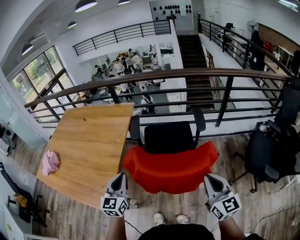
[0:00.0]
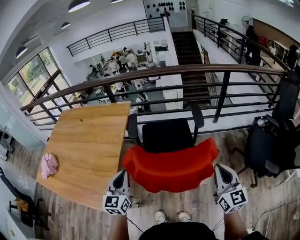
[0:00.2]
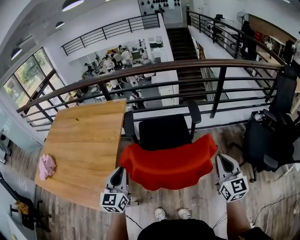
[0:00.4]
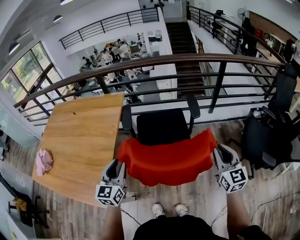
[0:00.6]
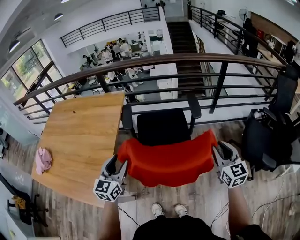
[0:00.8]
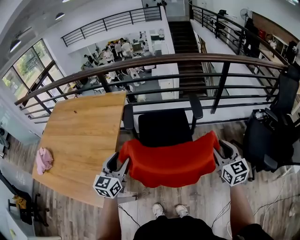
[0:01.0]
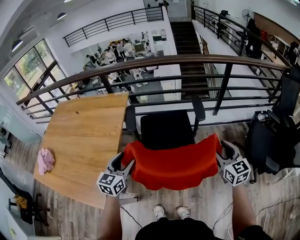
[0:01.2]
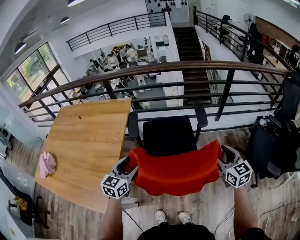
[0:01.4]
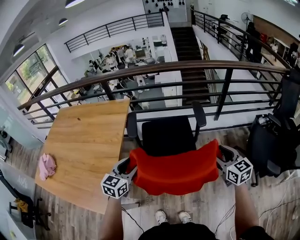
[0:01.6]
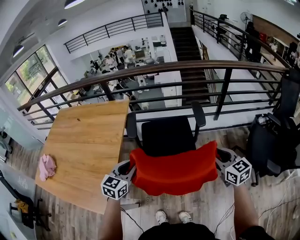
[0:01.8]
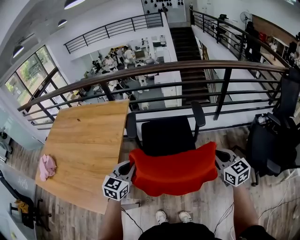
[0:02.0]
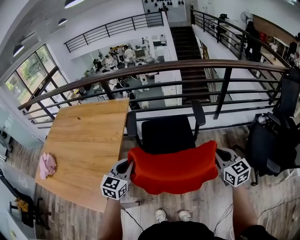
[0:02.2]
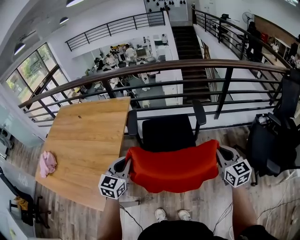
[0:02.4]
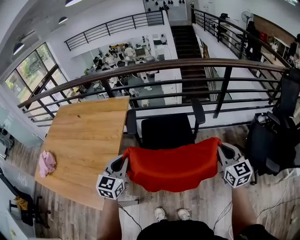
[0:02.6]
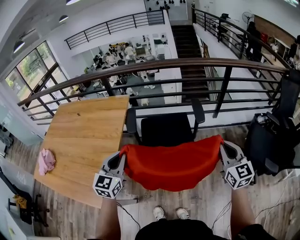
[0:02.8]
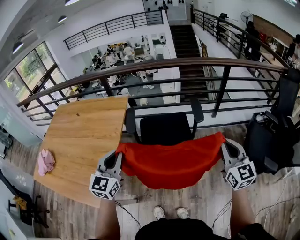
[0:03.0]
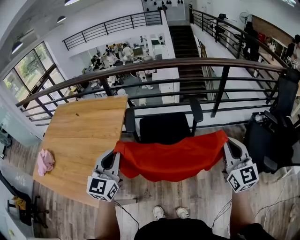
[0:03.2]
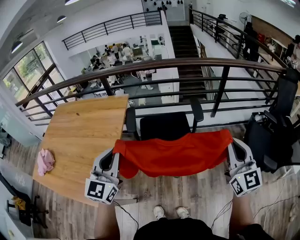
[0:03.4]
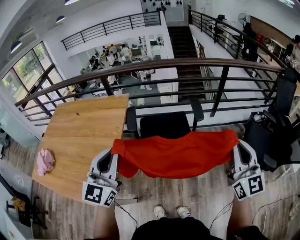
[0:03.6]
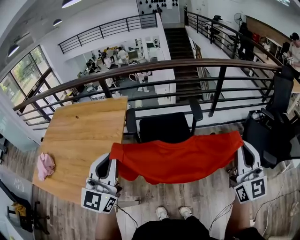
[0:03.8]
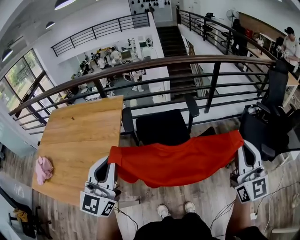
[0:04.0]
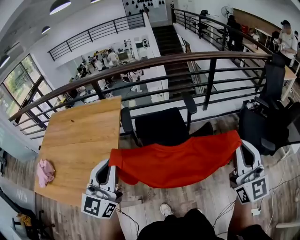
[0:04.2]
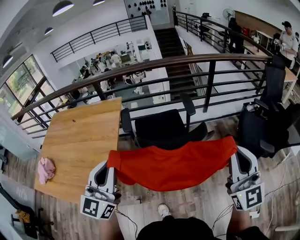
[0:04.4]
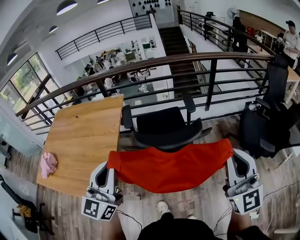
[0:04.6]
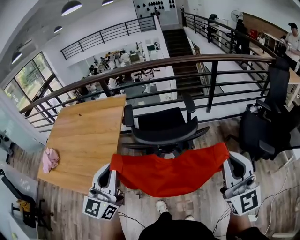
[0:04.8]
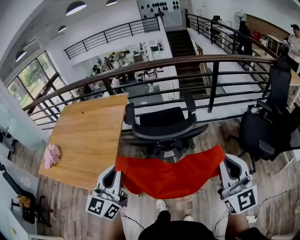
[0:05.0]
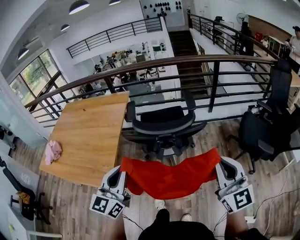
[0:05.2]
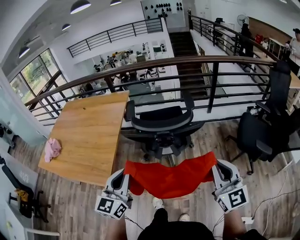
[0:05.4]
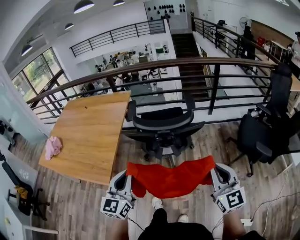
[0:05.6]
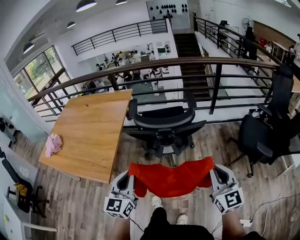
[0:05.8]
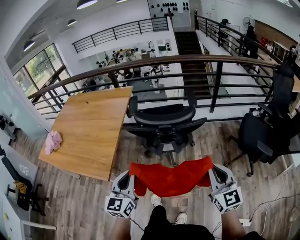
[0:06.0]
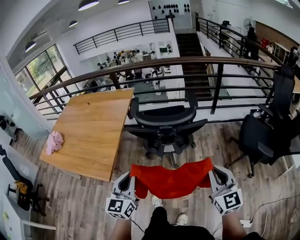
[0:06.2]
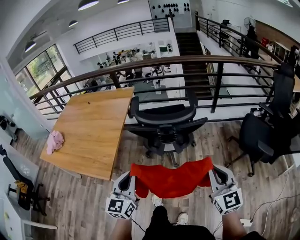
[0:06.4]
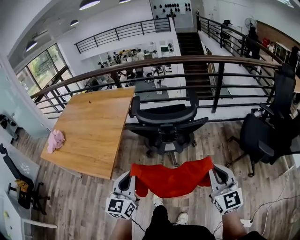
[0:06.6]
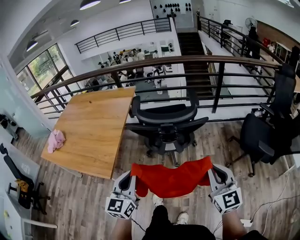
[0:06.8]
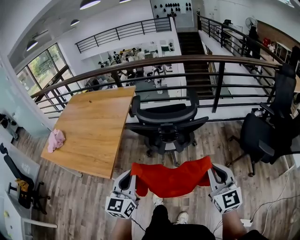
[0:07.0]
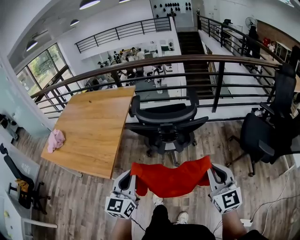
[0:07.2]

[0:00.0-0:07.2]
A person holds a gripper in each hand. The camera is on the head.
0:00.0 to 0:01.4: The right gripper moves forward, downward and to the right, about 15 cm, and opens. The left gripper travels forward and downward by roughly 10 cm, changes its angle by about 20 degrees, and opens up.
0:01.4 to 0:02.8: Both grippers move upward, about 5 cm. The right gripper closes; the left gripper closes up.
0:02.8 to 0:04.4: Both grippers travel together backward and upward, about 20 cm. The left gripper changes its angle by about 20 degrees. Meanwhile the right gripper rotates some 20 degrees.
0:04.4 to 0:05.8: The right gripper heads downward and backward, covering about 20 cm, and swivels roughly 20 degrees. Meanwhile the left gripper heads backward, downward and to the right, covering approximately 25 cm.
0:05.8 to 0:07.2: The grippers make only small movements.

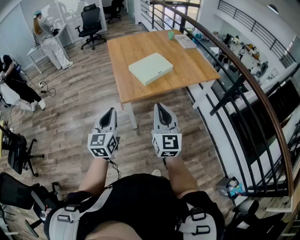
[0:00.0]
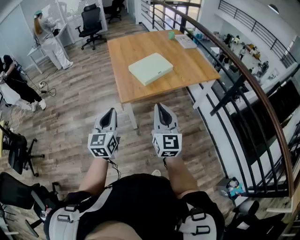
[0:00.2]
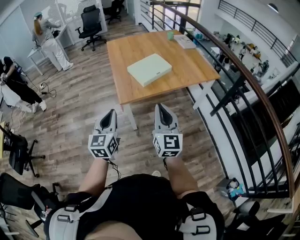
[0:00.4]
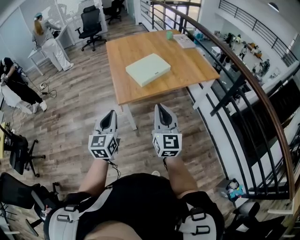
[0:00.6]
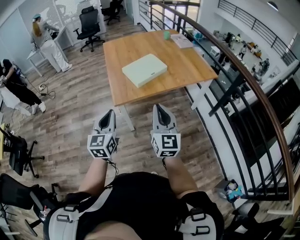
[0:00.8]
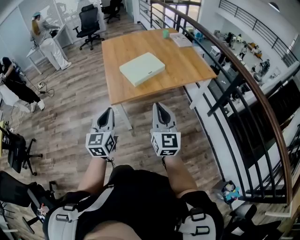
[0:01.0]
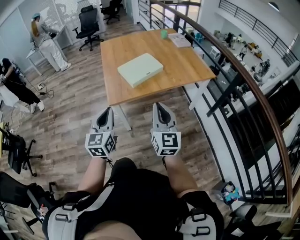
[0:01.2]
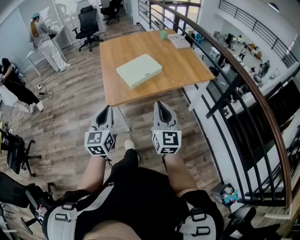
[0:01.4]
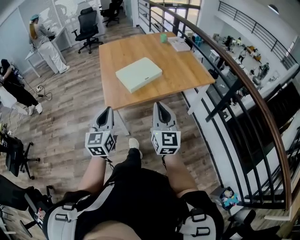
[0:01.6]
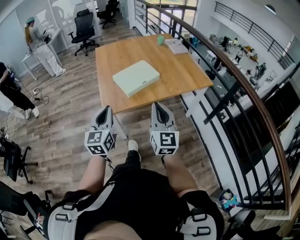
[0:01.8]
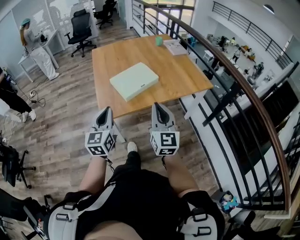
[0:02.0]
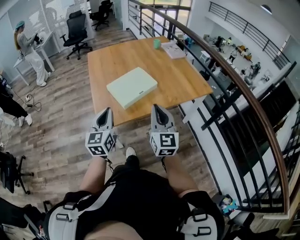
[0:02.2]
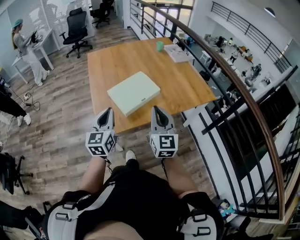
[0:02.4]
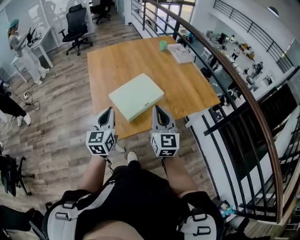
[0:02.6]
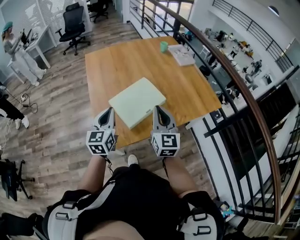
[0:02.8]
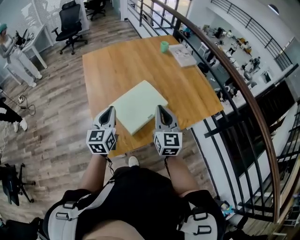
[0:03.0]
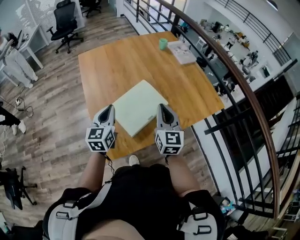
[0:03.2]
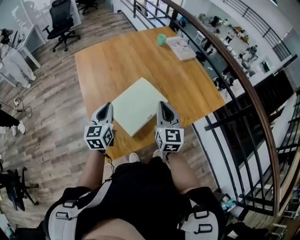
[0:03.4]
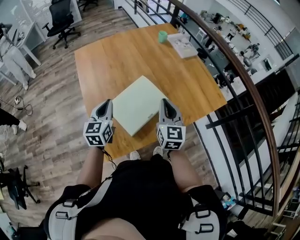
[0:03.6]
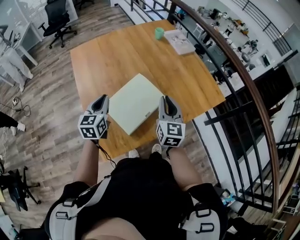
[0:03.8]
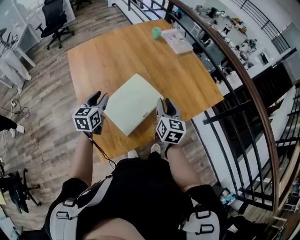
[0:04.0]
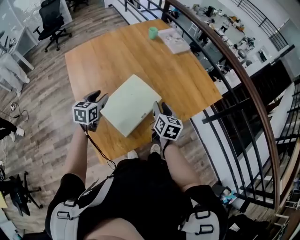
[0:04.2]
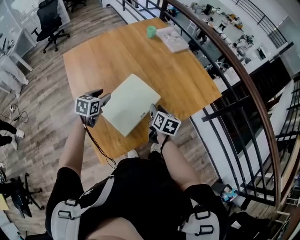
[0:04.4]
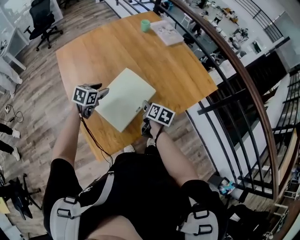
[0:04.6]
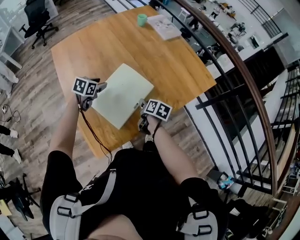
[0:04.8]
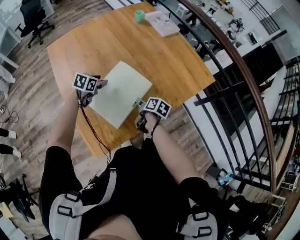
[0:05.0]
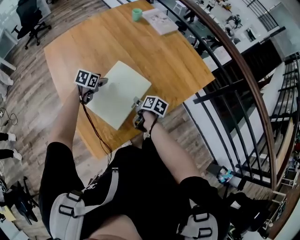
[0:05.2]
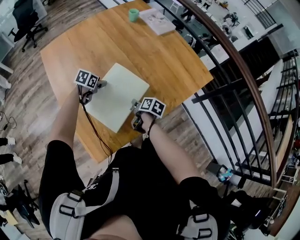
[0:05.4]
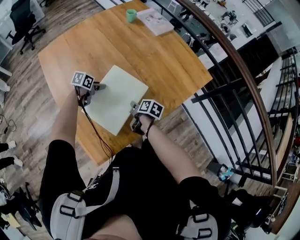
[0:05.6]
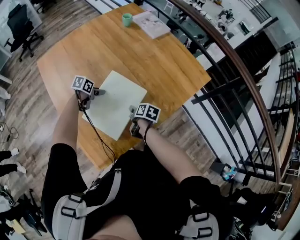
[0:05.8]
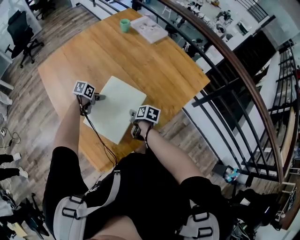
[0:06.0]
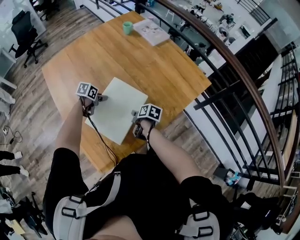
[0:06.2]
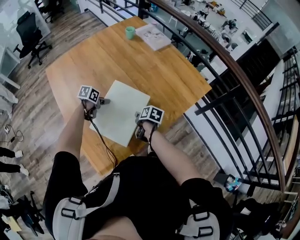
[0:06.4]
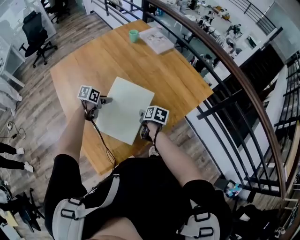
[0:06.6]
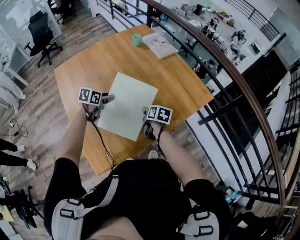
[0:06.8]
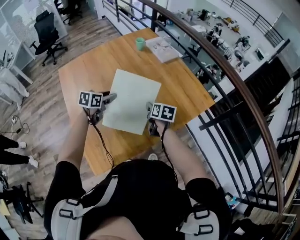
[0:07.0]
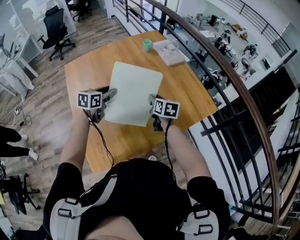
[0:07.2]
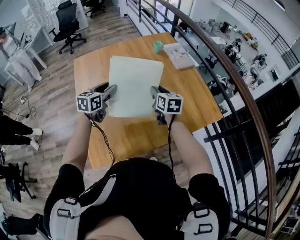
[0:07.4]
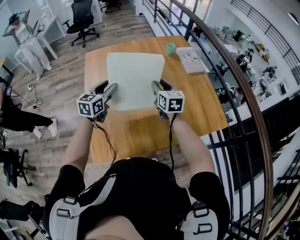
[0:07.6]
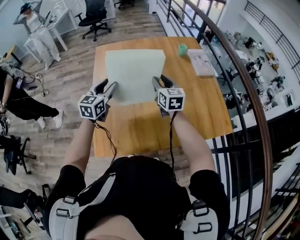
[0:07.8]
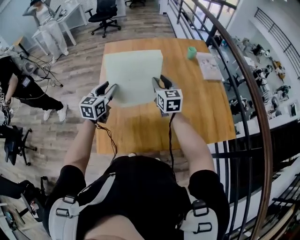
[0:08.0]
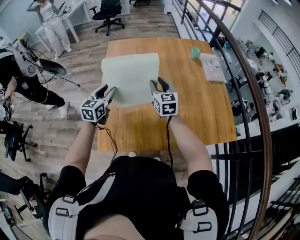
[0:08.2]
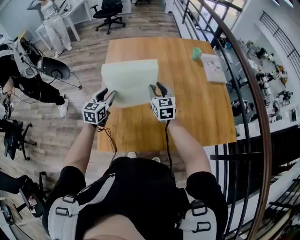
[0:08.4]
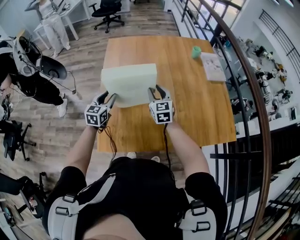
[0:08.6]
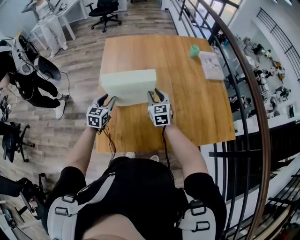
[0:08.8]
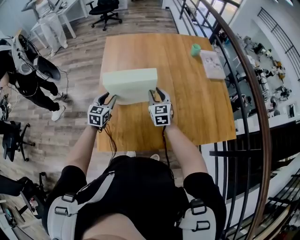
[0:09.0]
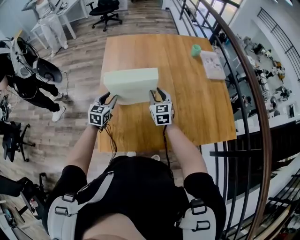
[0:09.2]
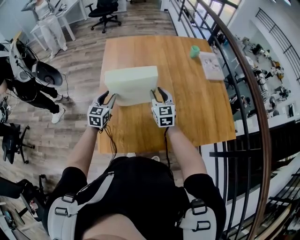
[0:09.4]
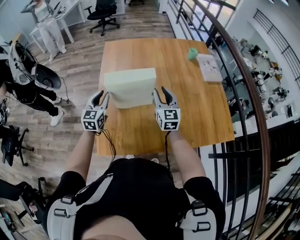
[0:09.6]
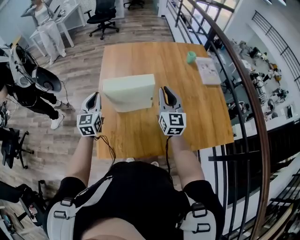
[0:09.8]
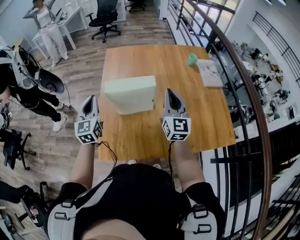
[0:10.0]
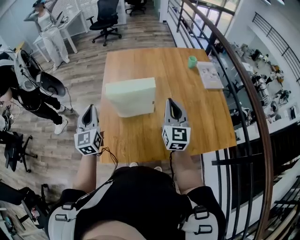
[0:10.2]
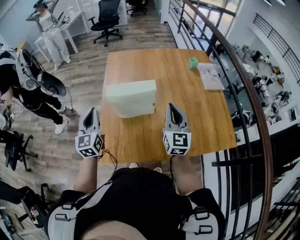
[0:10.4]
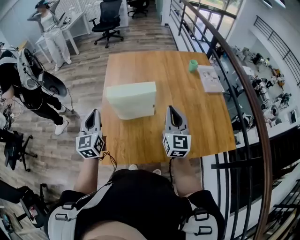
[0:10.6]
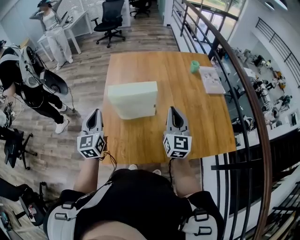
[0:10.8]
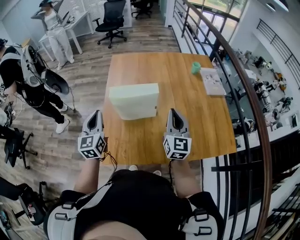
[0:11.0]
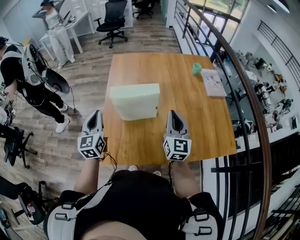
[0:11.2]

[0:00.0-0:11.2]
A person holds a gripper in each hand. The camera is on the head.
0:00.0 to 0:01.6: The grippers both shift to the right and forward by some 15 cm.
0:01.6 to 0:03.2: Both grippers travel together forward, some 40 cm.
0:03.2 to 0:04.8: The right gripper goes approximately 25 cm downward, angles its fingers downward, by roughly 40 degrees, and opens up. The left gripper heads downward and forward, covering approximately 25 cm, tilts its fingers about 40 degrees downward, and opens.
0:04.8 to 0:06.4: The left gripper goes roughly 5 cm downward, and rotates approximately 20 degrees.
0:06.4 to 0:08.0: Both grippers travel together upward, roughly 25 cm. The right gripper rotates around the line of its fingers by roughly 70 degrees, counterclockwise from behind. The left gripper points its fingers some 40 degrees further upward.
0:08.0 to 0:09.6: The right gripper travels downward and back again, roughly 10 cm each way, while the left gripper shifts some 5 cm to the left.
0:09.6 to 0:11.2: The right gripper moves backward and upward, approximately 10 cm, and closes its fingers; the left gripper travels upward and backward by about 10 cm, and closes up.

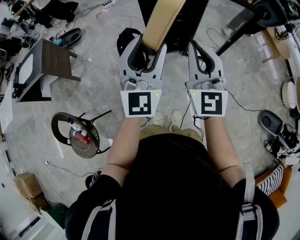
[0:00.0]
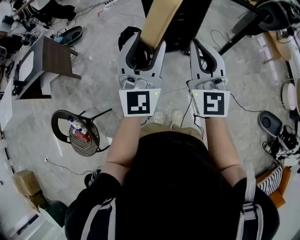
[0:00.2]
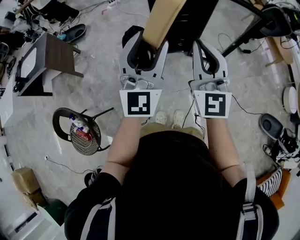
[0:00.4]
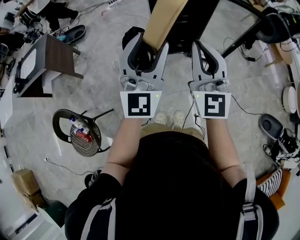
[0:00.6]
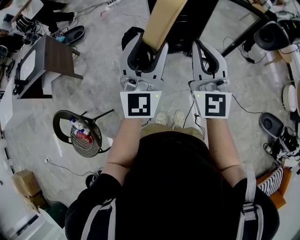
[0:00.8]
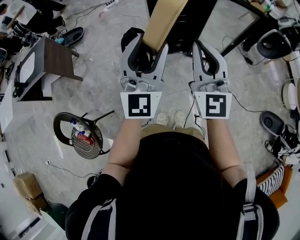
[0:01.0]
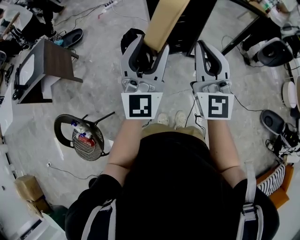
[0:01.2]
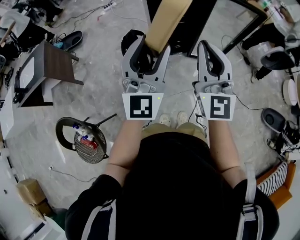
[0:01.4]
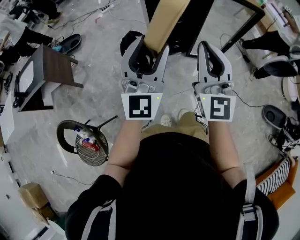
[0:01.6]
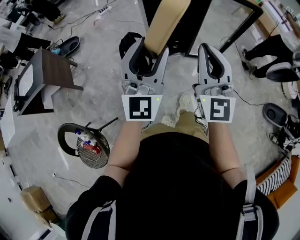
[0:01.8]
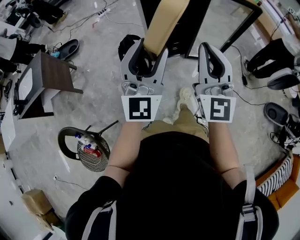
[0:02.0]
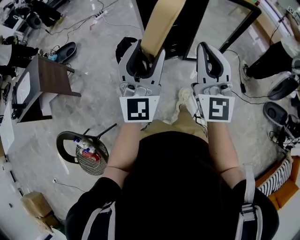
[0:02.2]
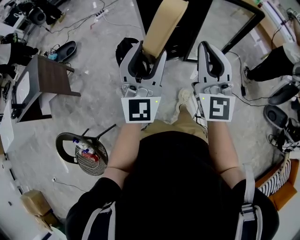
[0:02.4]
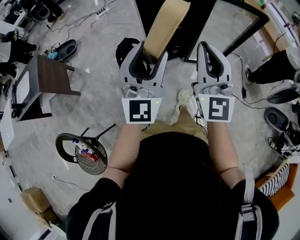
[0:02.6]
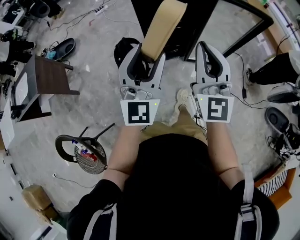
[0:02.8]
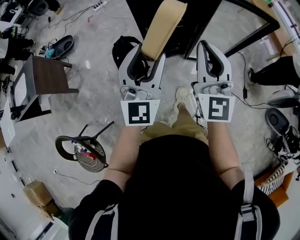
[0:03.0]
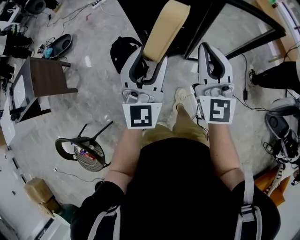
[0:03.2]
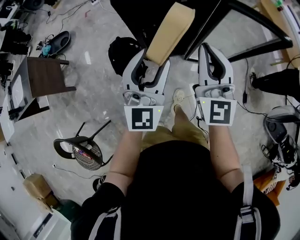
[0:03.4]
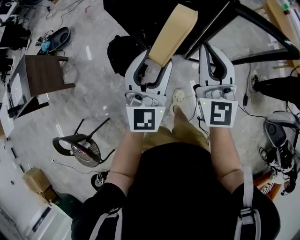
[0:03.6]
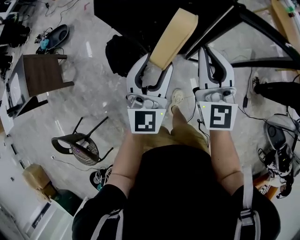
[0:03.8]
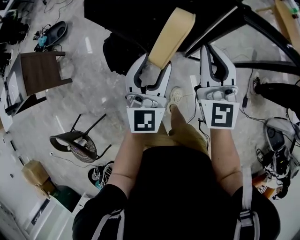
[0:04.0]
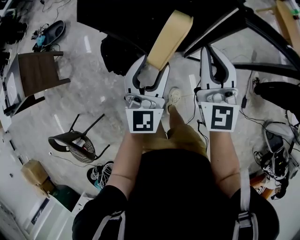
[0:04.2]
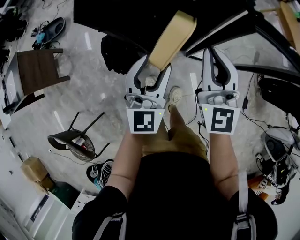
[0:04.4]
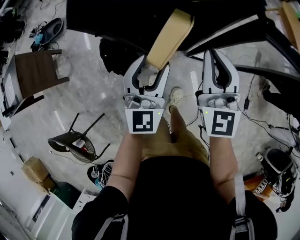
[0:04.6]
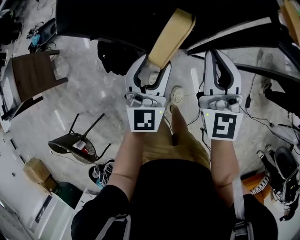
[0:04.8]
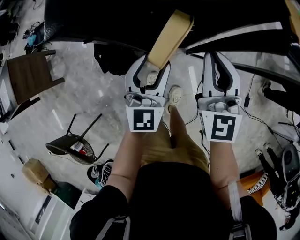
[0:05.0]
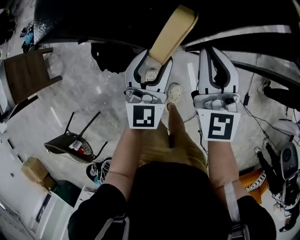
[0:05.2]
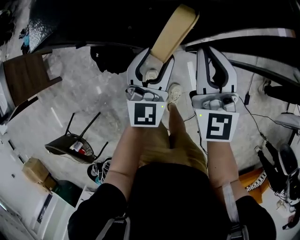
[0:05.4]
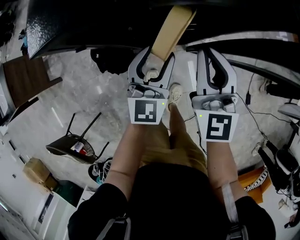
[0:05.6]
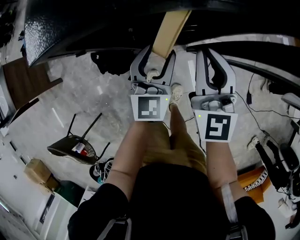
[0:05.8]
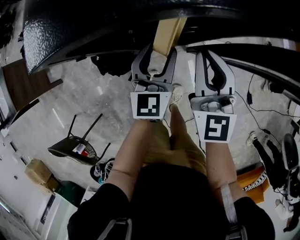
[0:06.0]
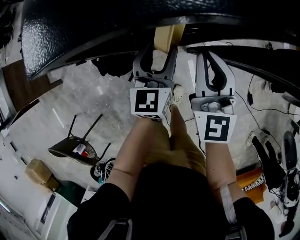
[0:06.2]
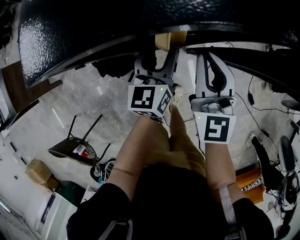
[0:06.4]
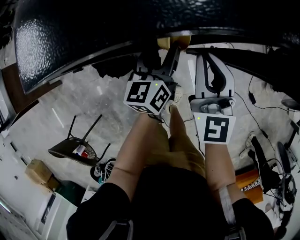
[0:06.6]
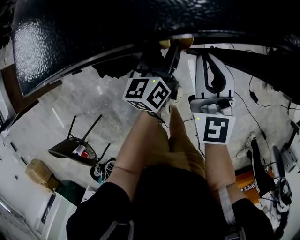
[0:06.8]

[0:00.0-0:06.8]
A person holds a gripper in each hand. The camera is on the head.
0:00.0 to 0:01.4: The two grippers go about 5 cm to the left.
0:01.4 to 0:02.8: The left gripper is displaced forward and downward by some 15 cm. The right gripper heads forward, covering roughly 15 cm.
0:02.8 to 0:04.0: Both grippers travel together forward and downward, some 35 cm.
0:04.0 to 0:05.4: The two grippers go approximately 20 cm downward and forward.
0:05.4 to 0:06.8: The right gripper ends up about 5 cm from where it was. Meanwhile the left gripper travels forward and downward by about 10 cm, and rolls counterclockwise, seen from behind, by approximately 50 degrees.
